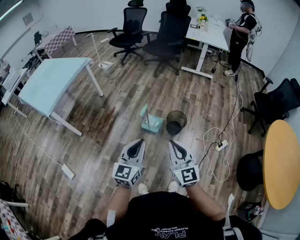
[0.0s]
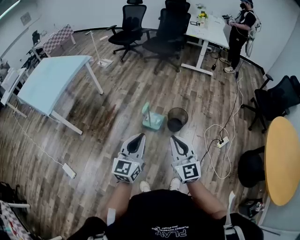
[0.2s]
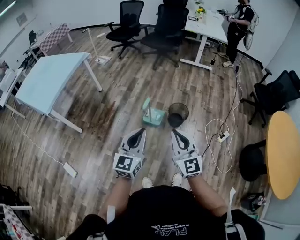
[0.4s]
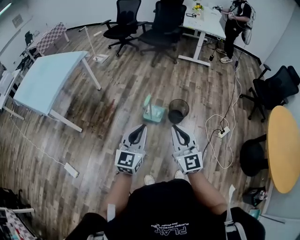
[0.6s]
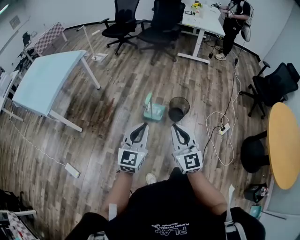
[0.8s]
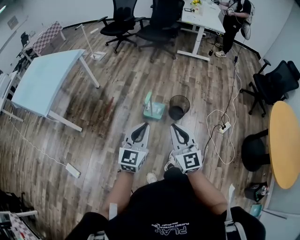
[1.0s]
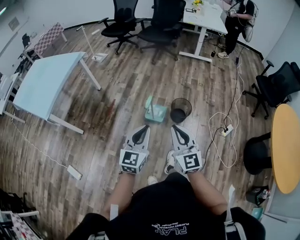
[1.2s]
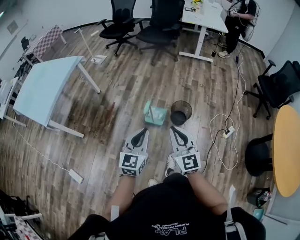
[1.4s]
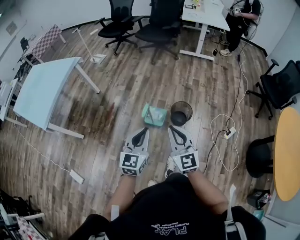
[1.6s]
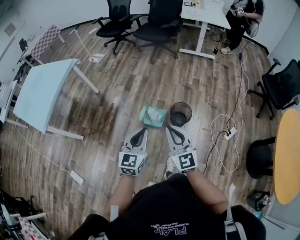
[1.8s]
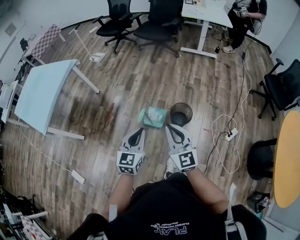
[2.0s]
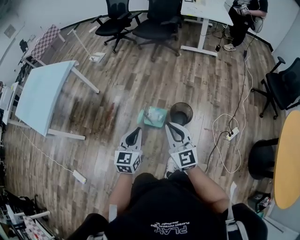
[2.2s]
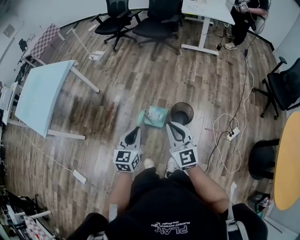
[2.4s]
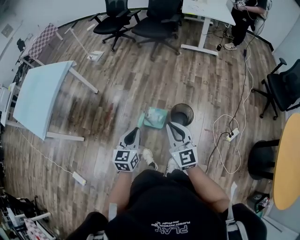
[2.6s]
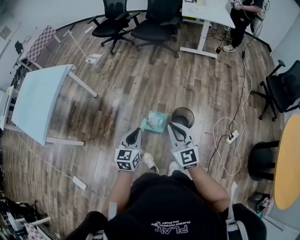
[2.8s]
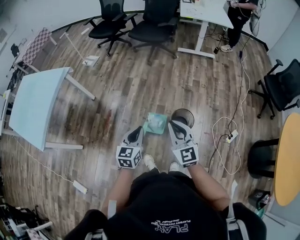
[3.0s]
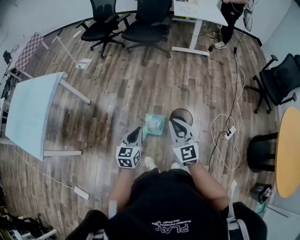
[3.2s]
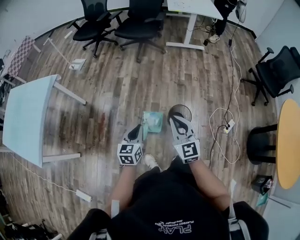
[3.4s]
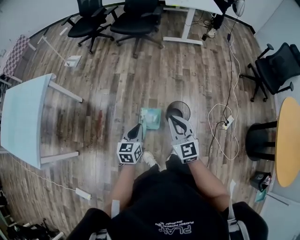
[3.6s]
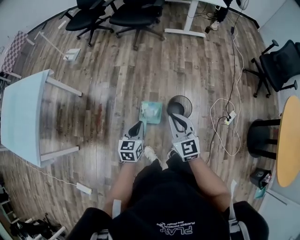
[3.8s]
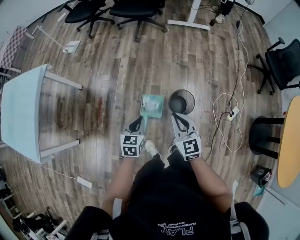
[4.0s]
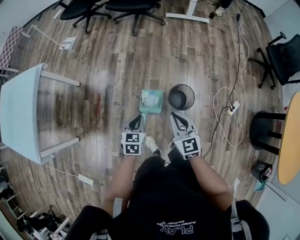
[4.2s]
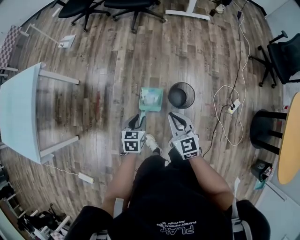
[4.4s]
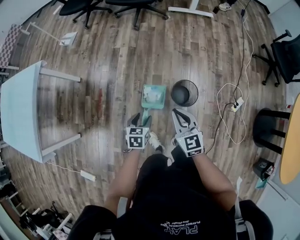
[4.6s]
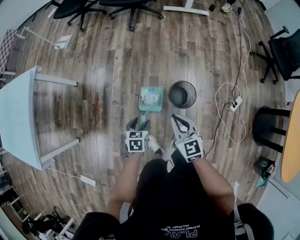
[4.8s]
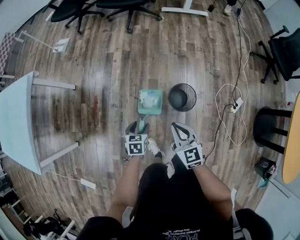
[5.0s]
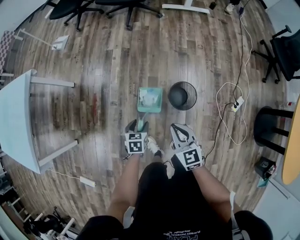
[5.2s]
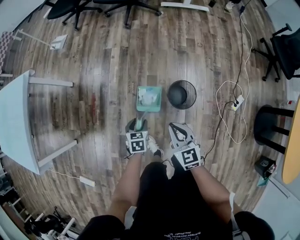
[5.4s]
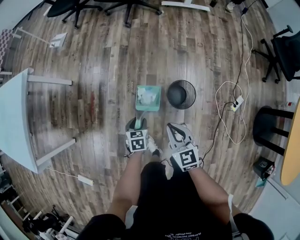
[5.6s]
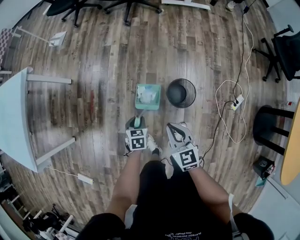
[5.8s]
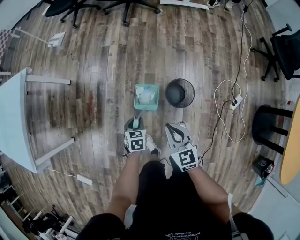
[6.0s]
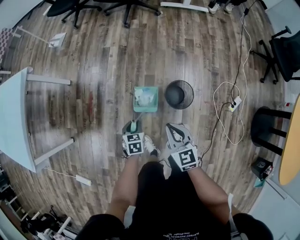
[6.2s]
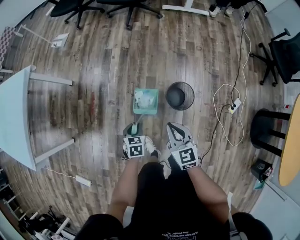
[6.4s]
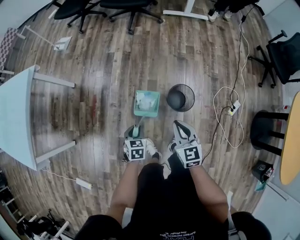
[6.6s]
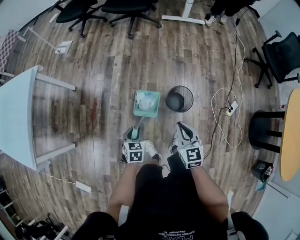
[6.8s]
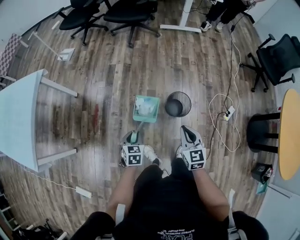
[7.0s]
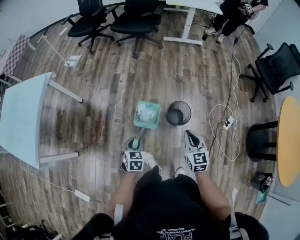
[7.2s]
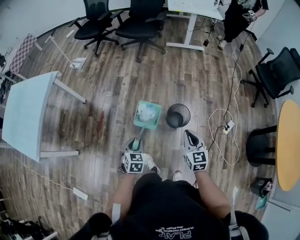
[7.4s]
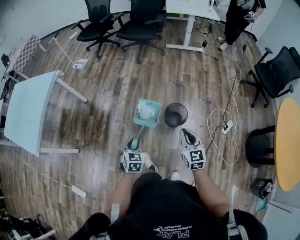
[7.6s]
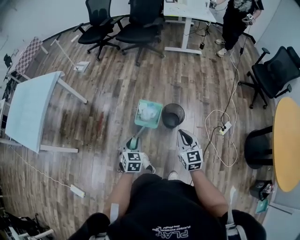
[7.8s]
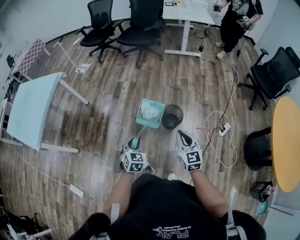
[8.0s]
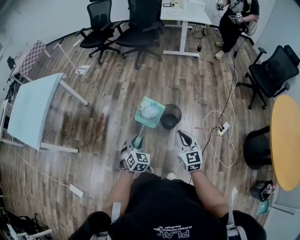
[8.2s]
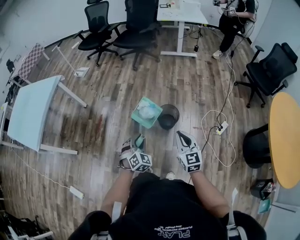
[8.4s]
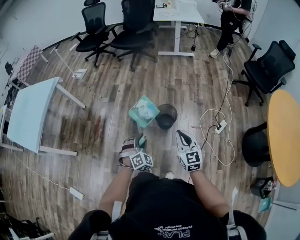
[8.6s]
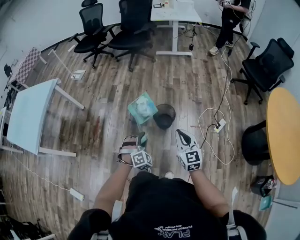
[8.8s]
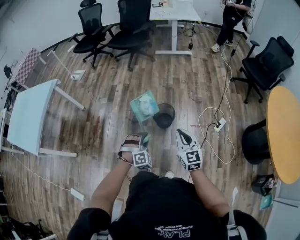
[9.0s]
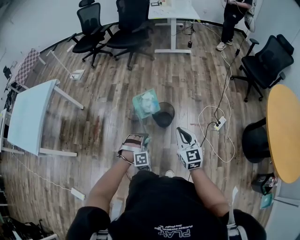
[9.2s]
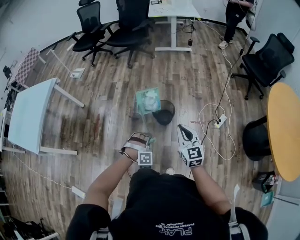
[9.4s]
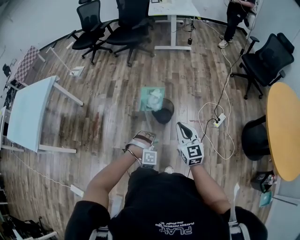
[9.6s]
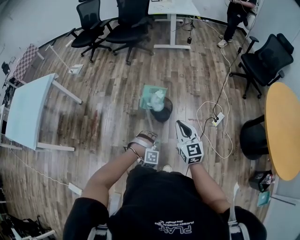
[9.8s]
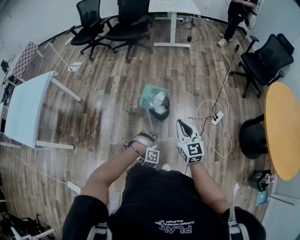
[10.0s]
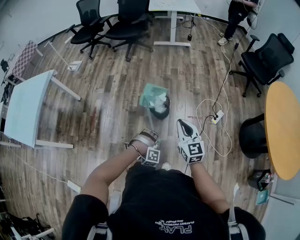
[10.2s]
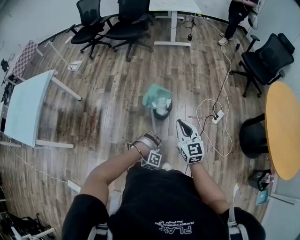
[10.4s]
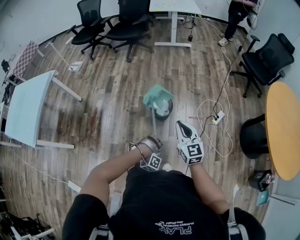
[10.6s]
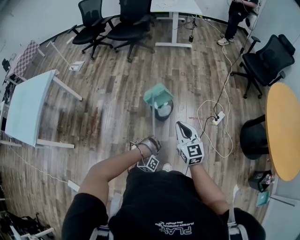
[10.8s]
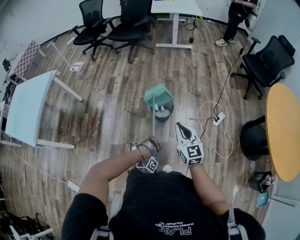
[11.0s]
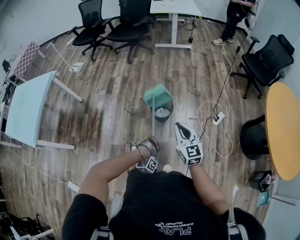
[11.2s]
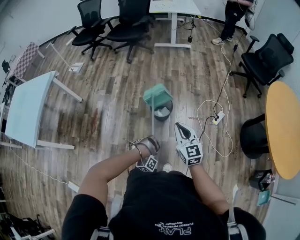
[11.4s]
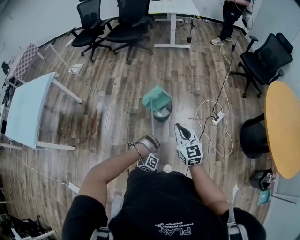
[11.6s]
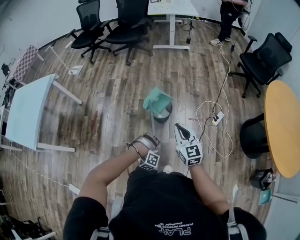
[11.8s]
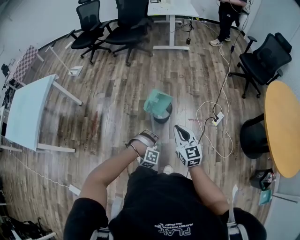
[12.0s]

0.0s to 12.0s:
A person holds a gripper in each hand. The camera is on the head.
0.0s to 1.6s: The grippers both shift forward by roughly 15 cm.
1.6s to 3.0s: The right gripper travels forward by roughly 20 cm, while the left gripper heads forward and downward, covering approximately 20 cm.
3.0s to 4.4s: Both grippers travel together downward and forward, some 20 cm. The left gripper turns by about 20 degrees.
4.4s to 6.0s: The right gripper travels downward by roughly 5 cm, while the left gripper travels downward by roughly 15 cm, and opens, then closes again.
6.0s to 7.6s: The left gripper is displaced upward and backward by roughly 25 cm, and swivels roughly 20 degrees. Meanwhile the right gripper heads backward, upward and to the right, covering roughly 20 cm.
7.6s to 9.0s: The left gripper travels to the right and backward by roughly 20 cm, and twists about 70 degrees clockwise, seen from behind. Meanwhile the right gripper goes approximately 15 cm backward and to the right.
9.0s to 10.4s: The left gripper moves downward and backward, approximately 15 cm, and rolls clockwise, seen from behind, by some 50 degrees.

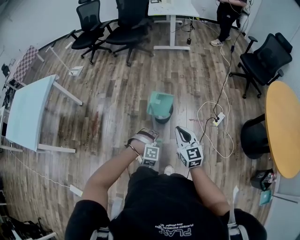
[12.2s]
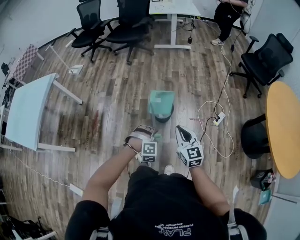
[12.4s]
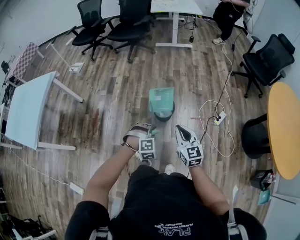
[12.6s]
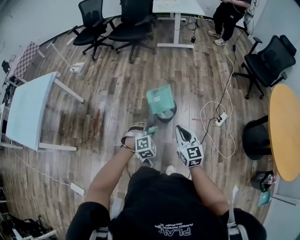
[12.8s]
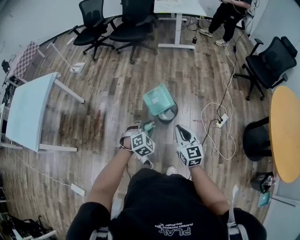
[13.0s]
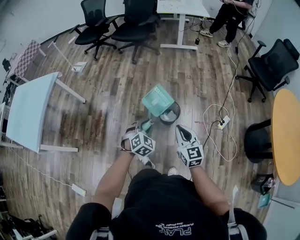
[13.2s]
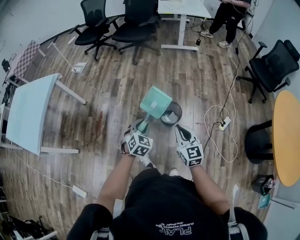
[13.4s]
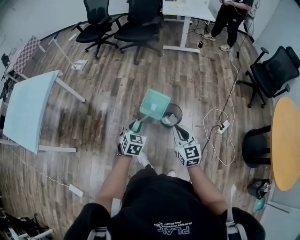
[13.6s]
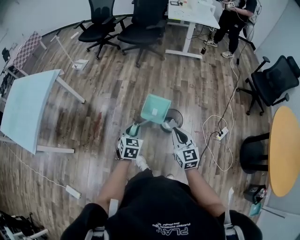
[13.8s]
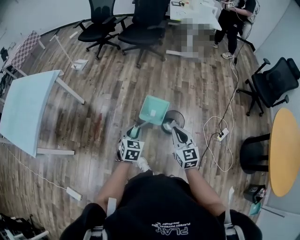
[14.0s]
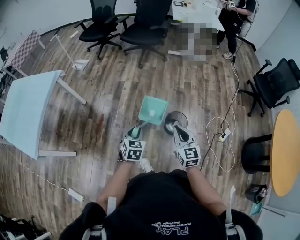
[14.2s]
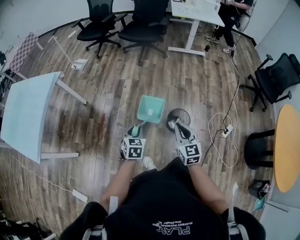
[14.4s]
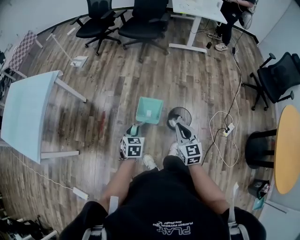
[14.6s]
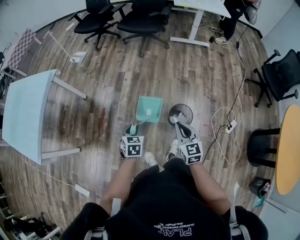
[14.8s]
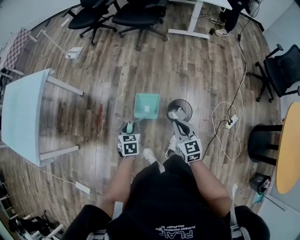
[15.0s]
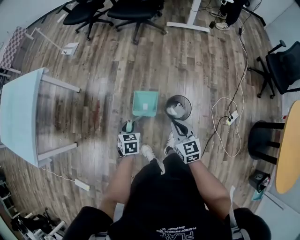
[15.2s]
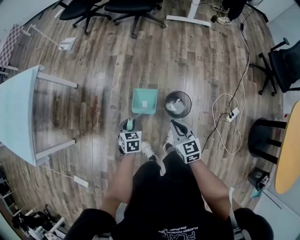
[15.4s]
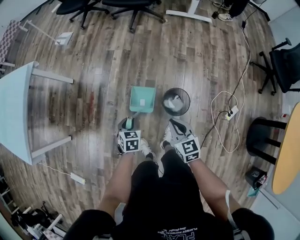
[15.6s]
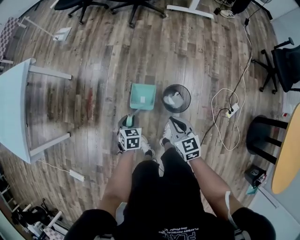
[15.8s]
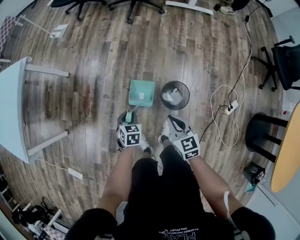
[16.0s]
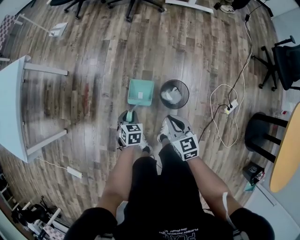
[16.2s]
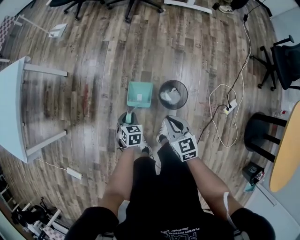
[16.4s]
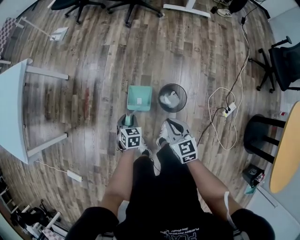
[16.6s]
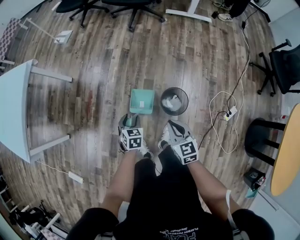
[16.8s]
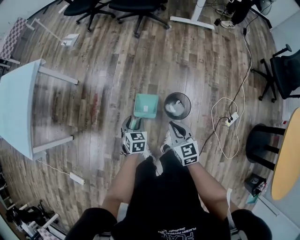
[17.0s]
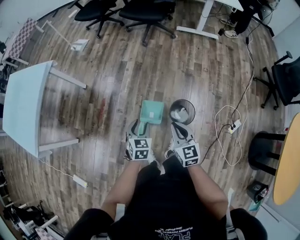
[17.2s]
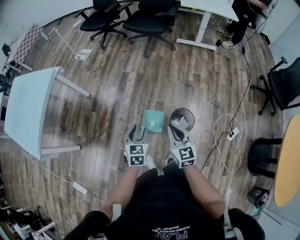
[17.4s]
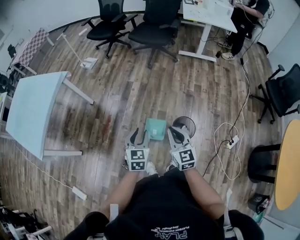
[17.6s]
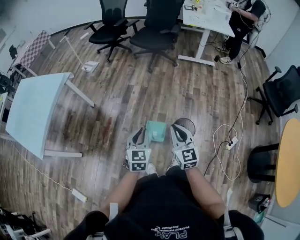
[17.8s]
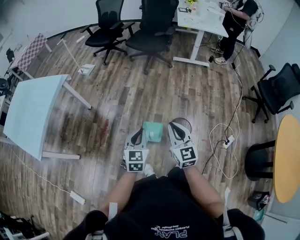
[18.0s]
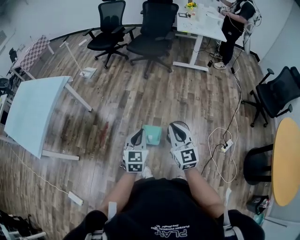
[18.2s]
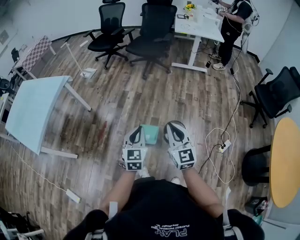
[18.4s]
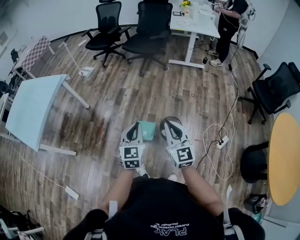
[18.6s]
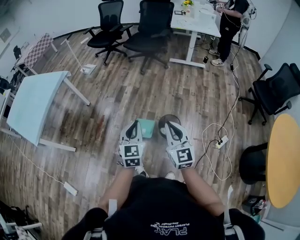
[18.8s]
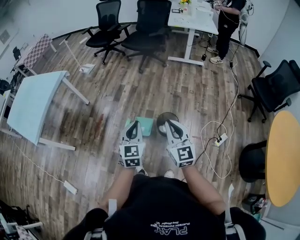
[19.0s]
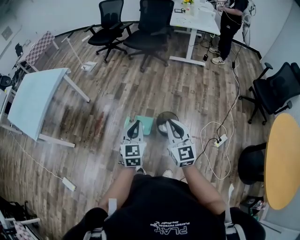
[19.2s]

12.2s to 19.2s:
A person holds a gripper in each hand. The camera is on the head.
12.2s to 13.6s: The left gripper goes roughly 25 cm to the left, forward and upward, and rotates around the line of its fingers by roughly 80 degrees, counterclockwise from behind, while the right gripper travels forward and to the left by roughly 15 cm.
13.6s to 15.0s: The left gripper goes roughly 20 cm forward, to the left and downward, and changes its angle by about 20 degrees, while the right gripper travels forward, downward and to the left by some 20 cm.
15.0s to 16.4s: The two grippers go some 15 cm downward.
16.4s to 17.8s: Both grippers move upward, about 25 cm. The right gripper rotates about 30 degrees; the left gripper tilts its fingers approximately 30 degrees upward, and opens, then closes again.
17.8s to 19.2s: Both grippers travel together to the right, backward and upward, approximately 20 cm.

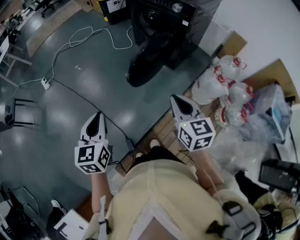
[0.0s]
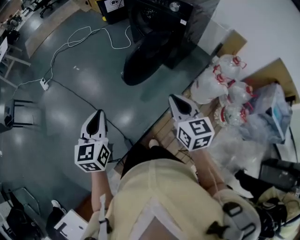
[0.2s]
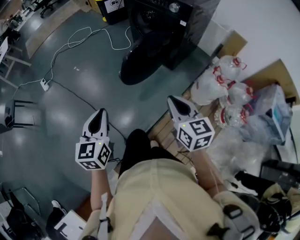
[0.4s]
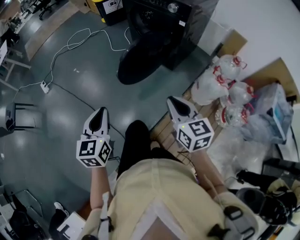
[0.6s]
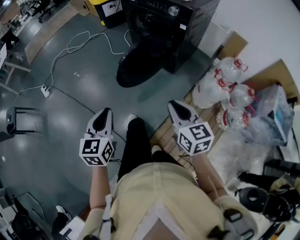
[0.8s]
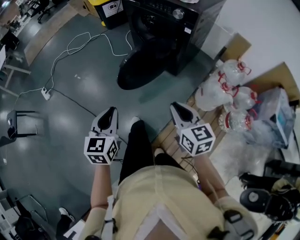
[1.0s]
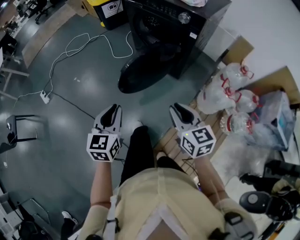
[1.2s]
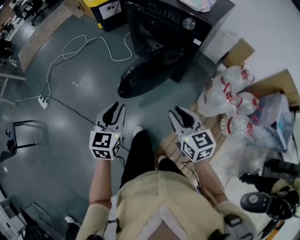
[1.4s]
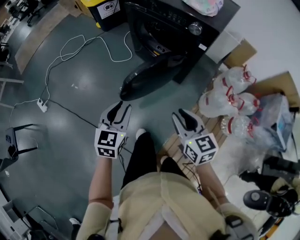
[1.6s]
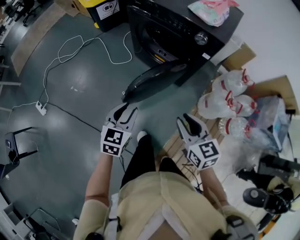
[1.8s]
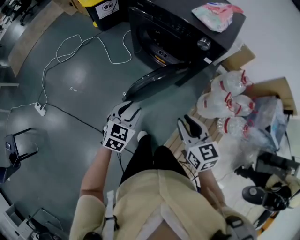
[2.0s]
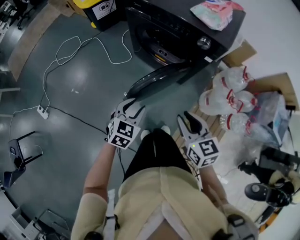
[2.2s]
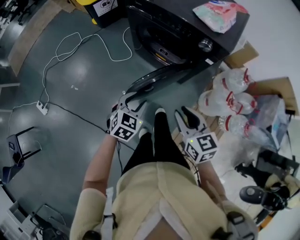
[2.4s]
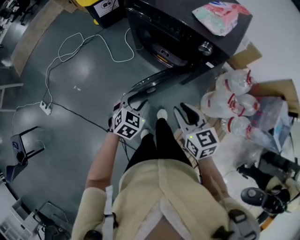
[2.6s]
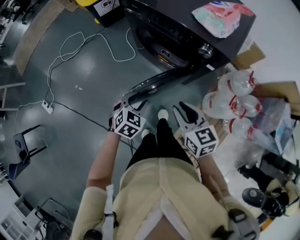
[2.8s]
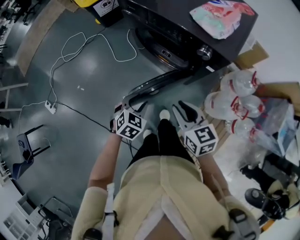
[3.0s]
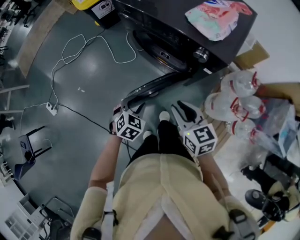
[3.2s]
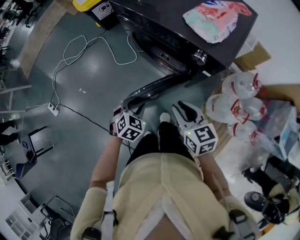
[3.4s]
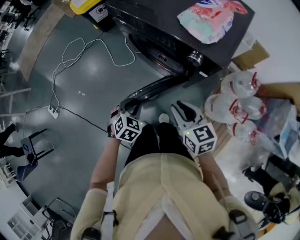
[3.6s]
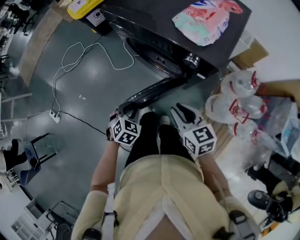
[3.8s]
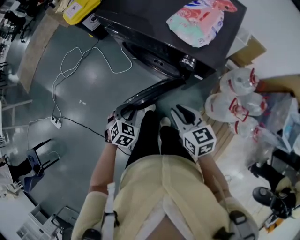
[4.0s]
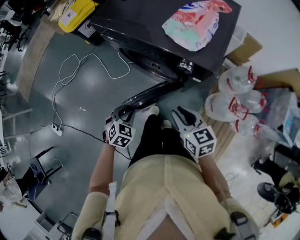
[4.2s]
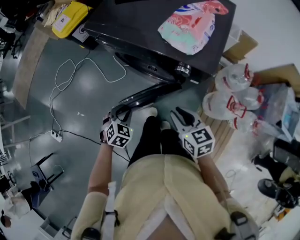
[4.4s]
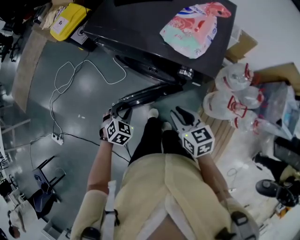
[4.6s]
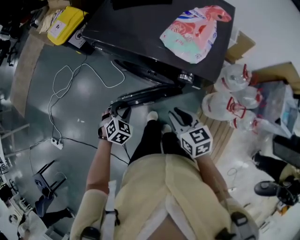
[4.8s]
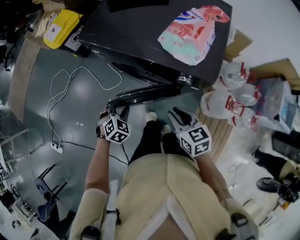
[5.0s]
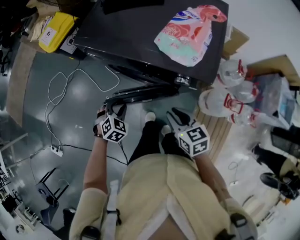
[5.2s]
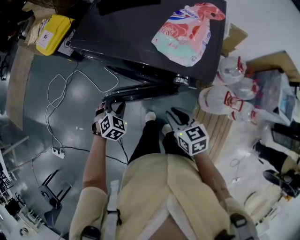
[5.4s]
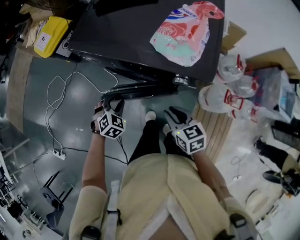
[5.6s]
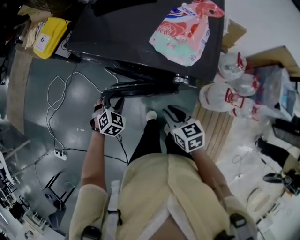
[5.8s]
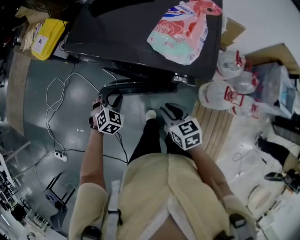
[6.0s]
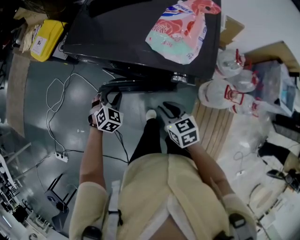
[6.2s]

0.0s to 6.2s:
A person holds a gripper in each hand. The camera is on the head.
0.0s to 1.6s: Both grippers move forward, roughly 25 cm. The left gripper rotates about 30 degrees, and opens.
1.6s to 3.2s: The right gripper goes approximately 20 cm forward, while the left gripper travels forward and downward by some 20 cm, and turns by approximately 30 degrees.
3.2s to 4.6s: The right gripper is displaced forward by roughly 5 cm. The left gripper goes roughly 10 cm forward.
4.6s to 6.2s: The right gripper travels forward and downward by about 5 cm. The left gripper shifts roughly 15 cm forward.
